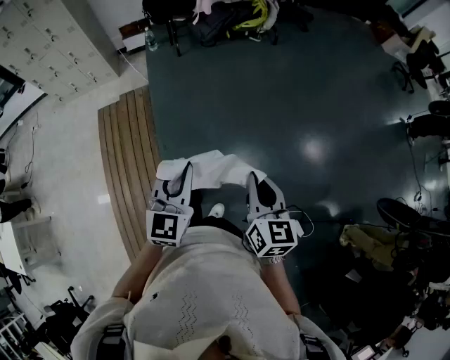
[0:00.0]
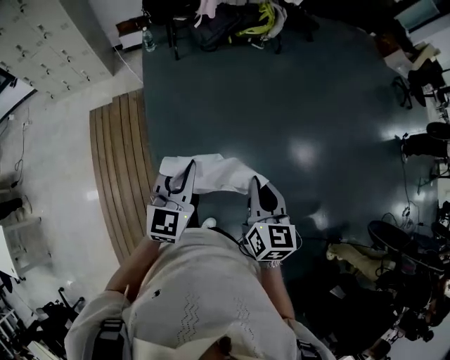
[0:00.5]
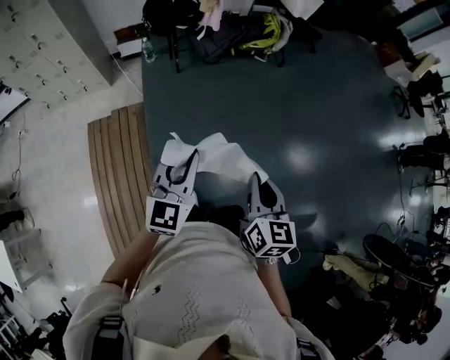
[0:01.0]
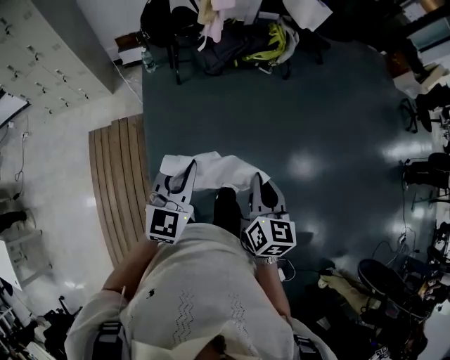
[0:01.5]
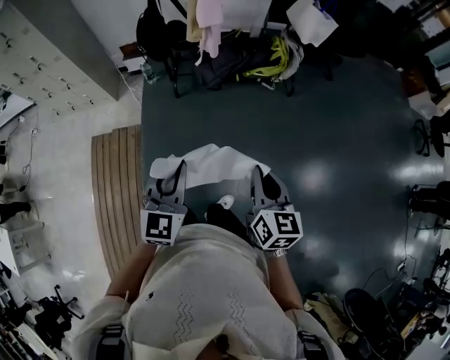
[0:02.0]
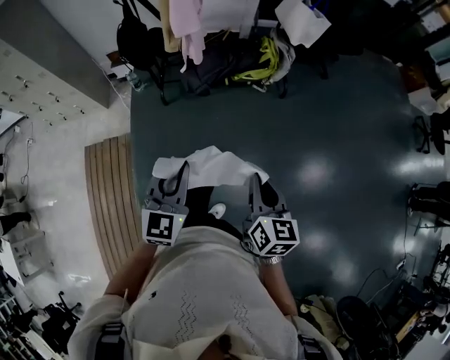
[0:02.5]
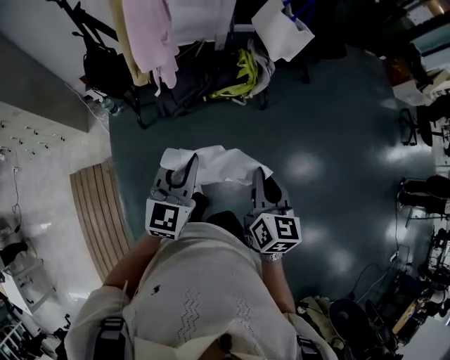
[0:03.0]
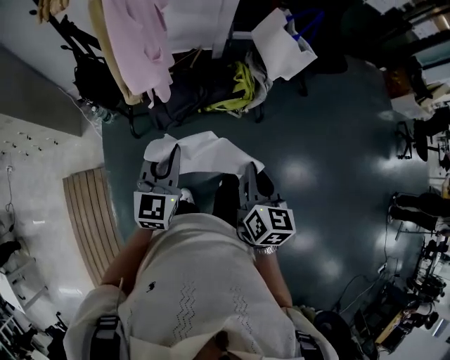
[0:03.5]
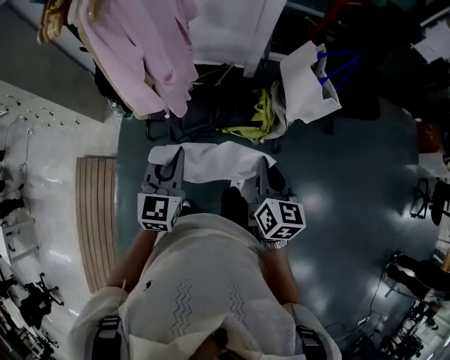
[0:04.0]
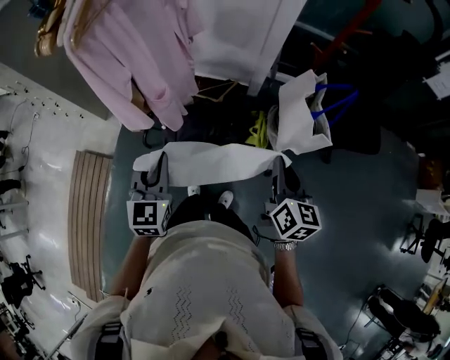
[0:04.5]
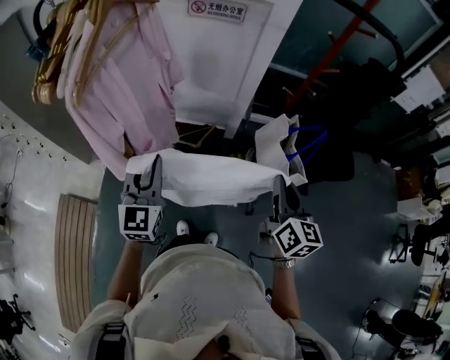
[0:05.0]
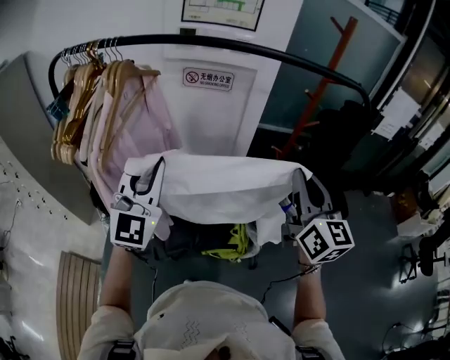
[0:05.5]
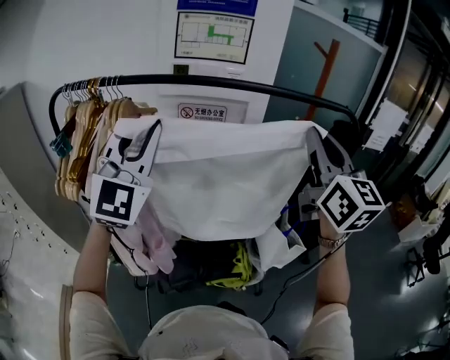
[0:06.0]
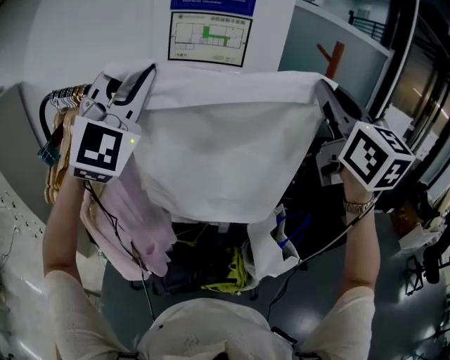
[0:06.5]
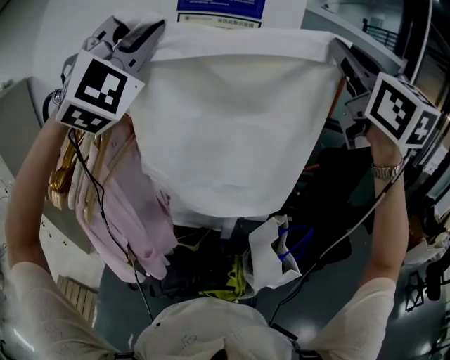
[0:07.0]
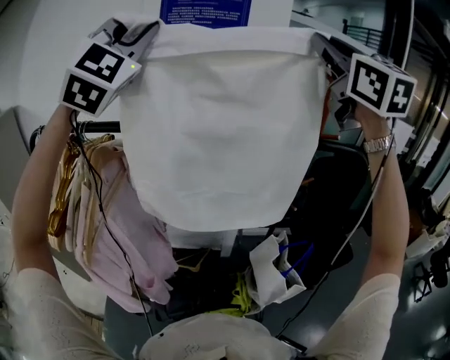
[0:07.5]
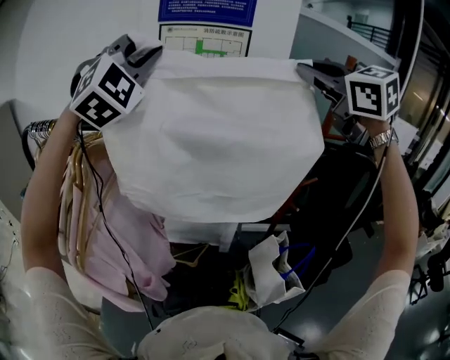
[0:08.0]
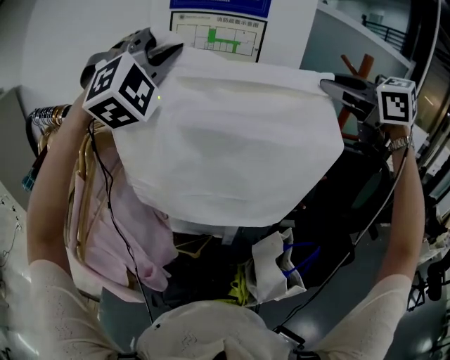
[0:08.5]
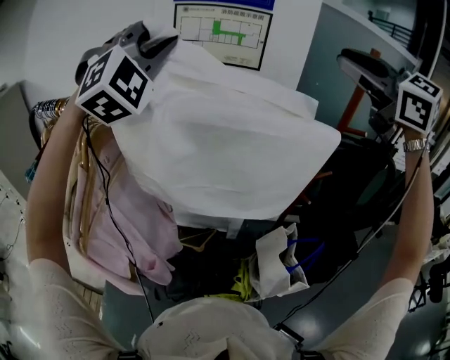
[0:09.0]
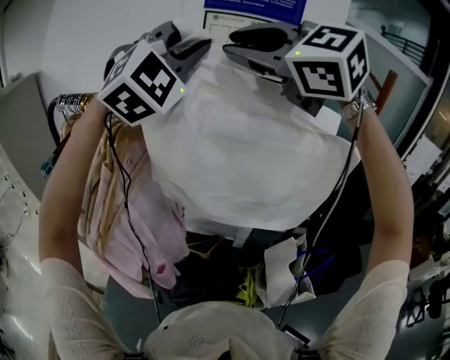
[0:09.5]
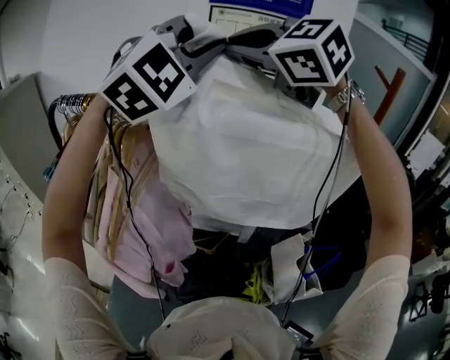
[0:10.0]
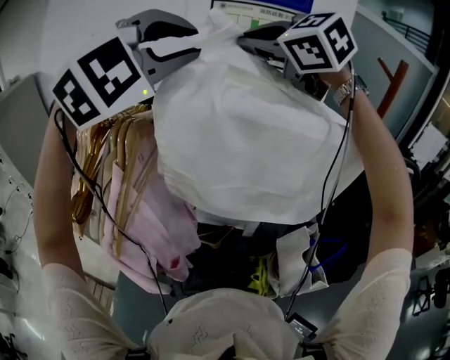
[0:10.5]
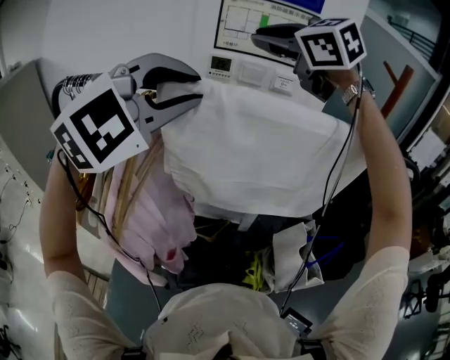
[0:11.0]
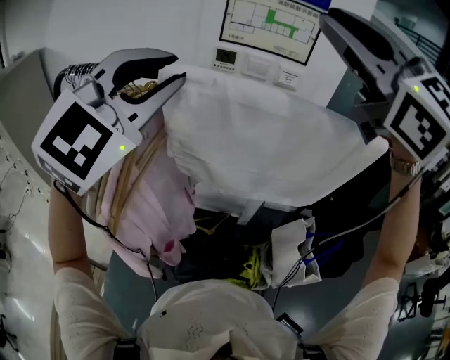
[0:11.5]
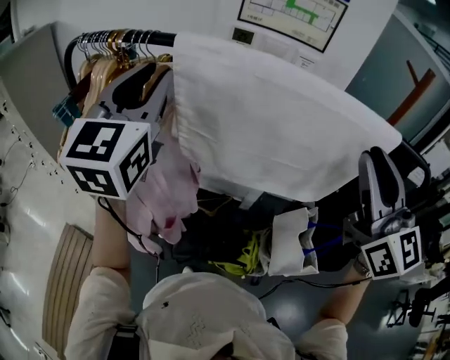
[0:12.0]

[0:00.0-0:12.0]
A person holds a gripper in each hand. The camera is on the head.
0:00.0 to 0:02.0: The two grippers travel together, forward, approximately 70 cm.
0:02.0 to 0:04.0: Both grippers are carried forward, about 60 cm.
0:04.0 to 0:06.0: The grippers both shift upward and forward by about 50 cm. The left gripper angles its fingers upward, by approximately 40 degrees. Meanwhile the right gripper points its fingers roughly 40 degrees further upward.
0:06.0 to 0:08.0: Both grippers travel together forward and upward, about 30 cm. The left gripper rotates roughly 40 degrees, while the right gripper changes its angle by some 40 degrees.
0:08.0 to 0:10.0: The right gripper heads to the left, covering some 25 cm, and changes its angle by approximately 30 degrees.
0:10.0 to 0:12.0: The right gripper goes some 30 cm backward, to the right and downward, and tilts its fingers approximately 30 degrees upward, while the left gripper moves to the left, downward and backward, roughly 20 cm, and rotates around the line of its fingers by roughly 50 degrees, counterclockwise from behind.

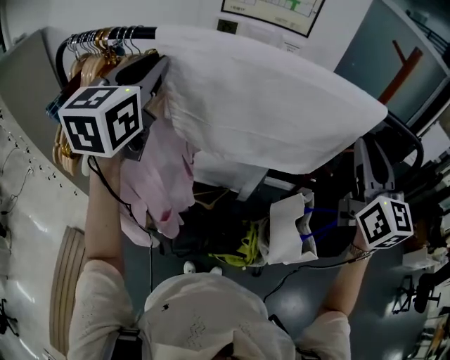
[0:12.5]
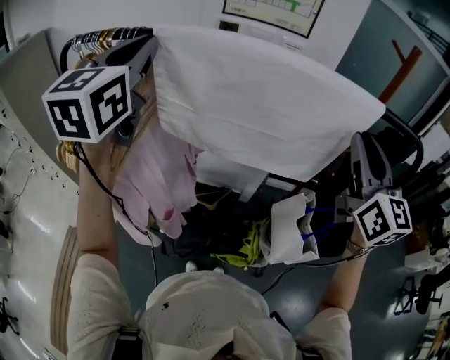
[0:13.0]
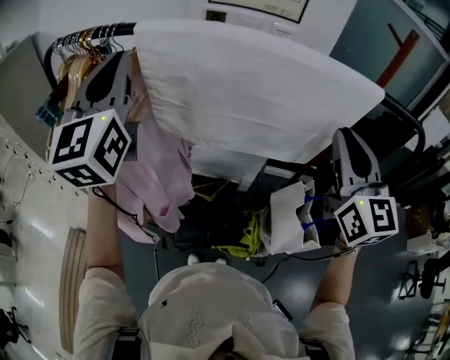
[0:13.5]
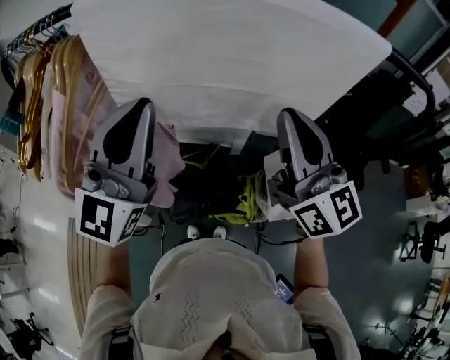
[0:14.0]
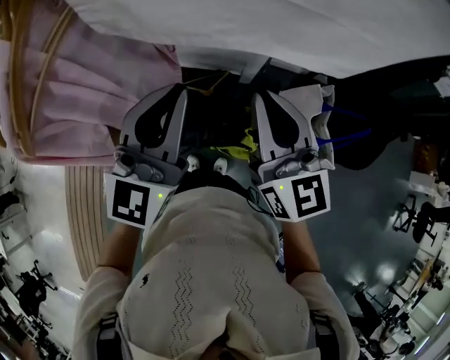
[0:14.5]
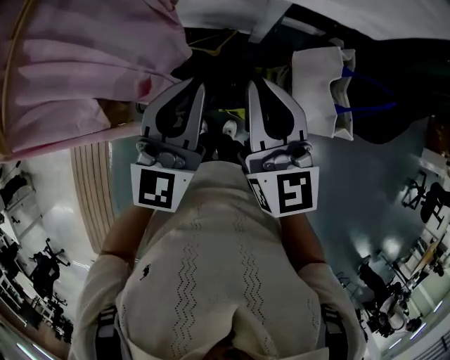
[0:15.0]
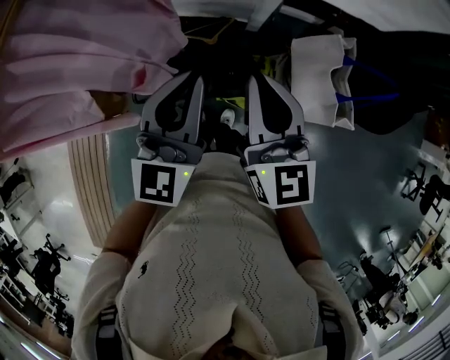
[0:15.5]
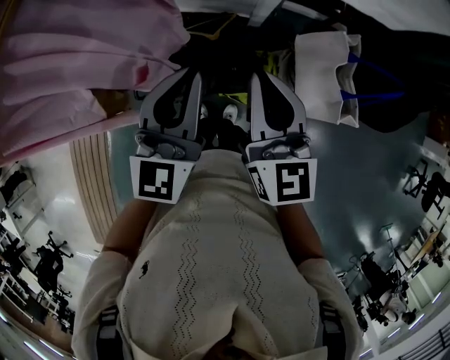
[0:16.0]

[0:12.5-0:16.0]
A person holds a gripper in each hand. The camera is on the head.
0:12.5 to 0:14.5: The left gripper goes approximately 30 cm downward, to the right and backward. The right gripper is displaced downward and to the left by about 30 cm.
0:14.5 to 0:16.0: The grippers both shift downward by some 10 cm.

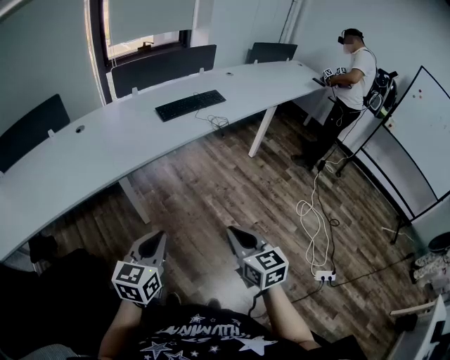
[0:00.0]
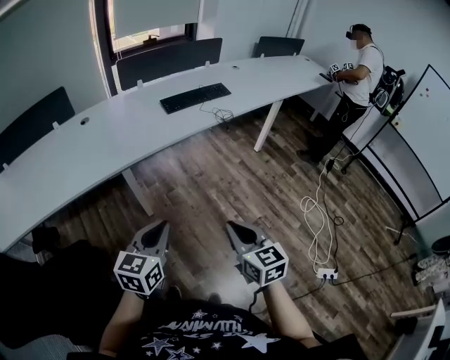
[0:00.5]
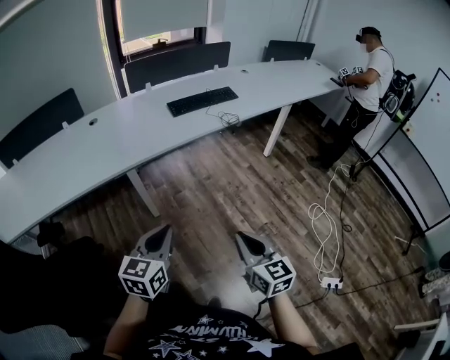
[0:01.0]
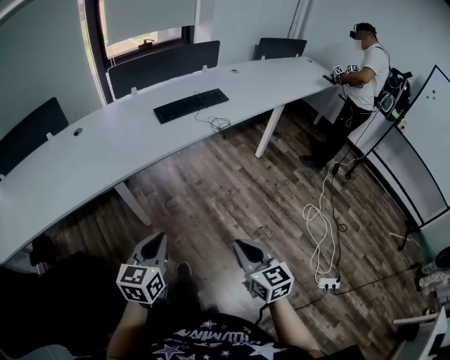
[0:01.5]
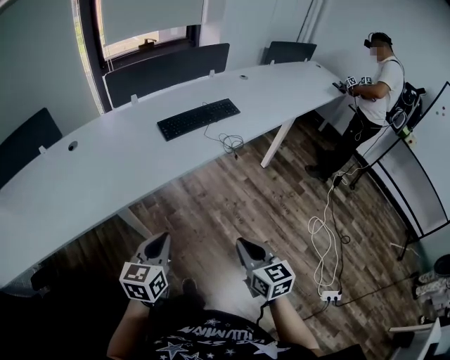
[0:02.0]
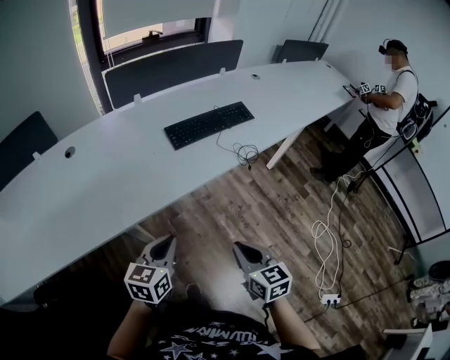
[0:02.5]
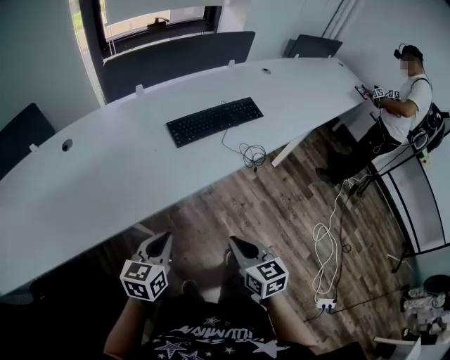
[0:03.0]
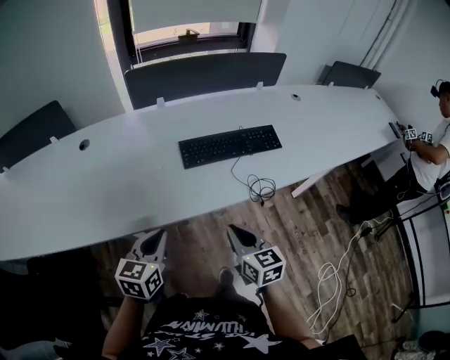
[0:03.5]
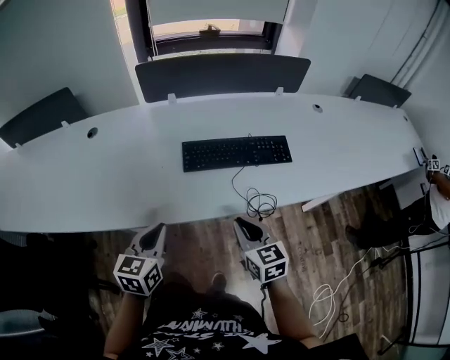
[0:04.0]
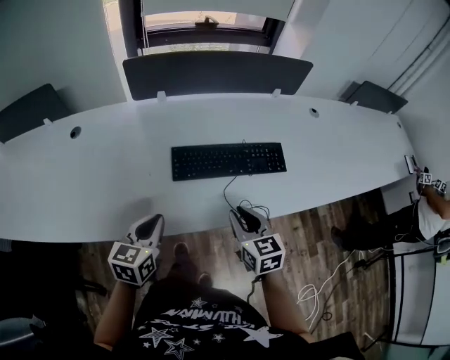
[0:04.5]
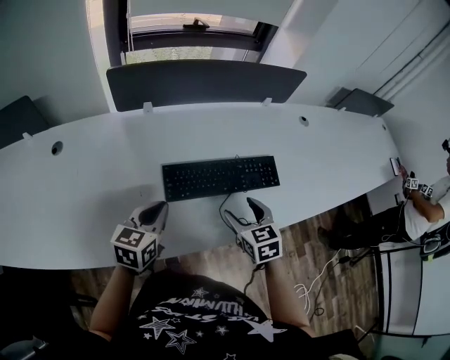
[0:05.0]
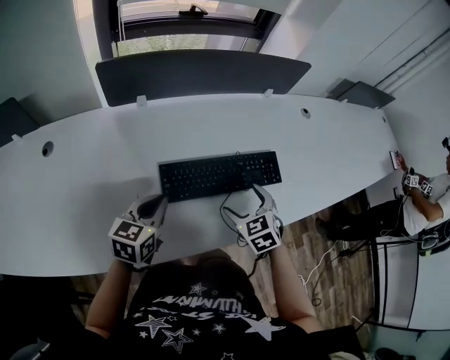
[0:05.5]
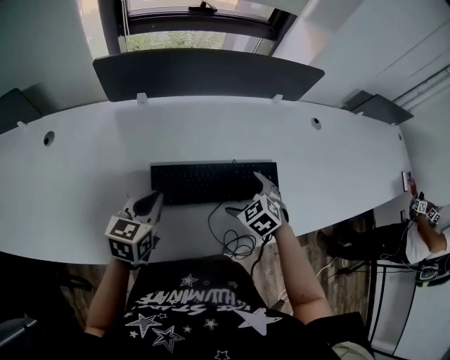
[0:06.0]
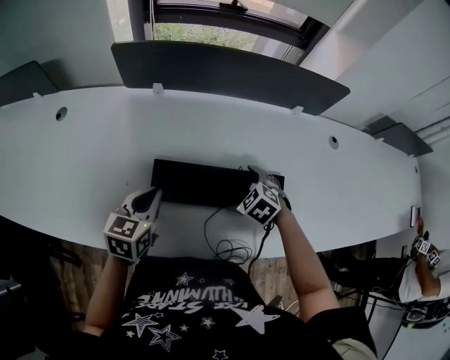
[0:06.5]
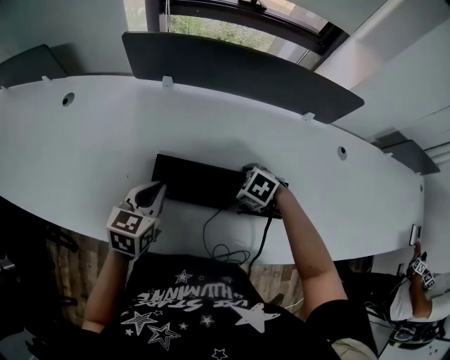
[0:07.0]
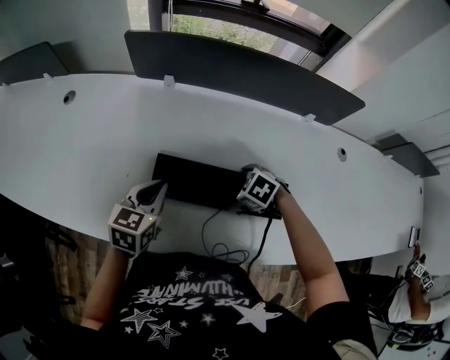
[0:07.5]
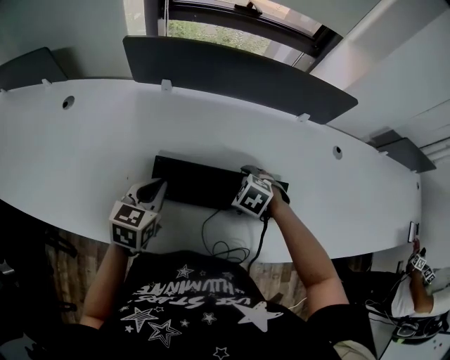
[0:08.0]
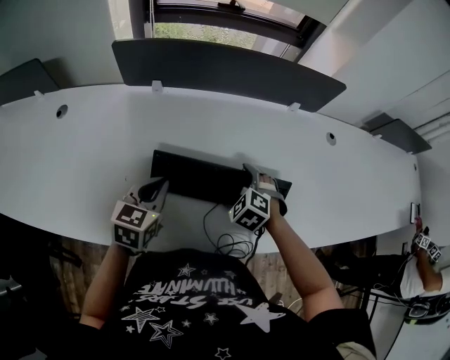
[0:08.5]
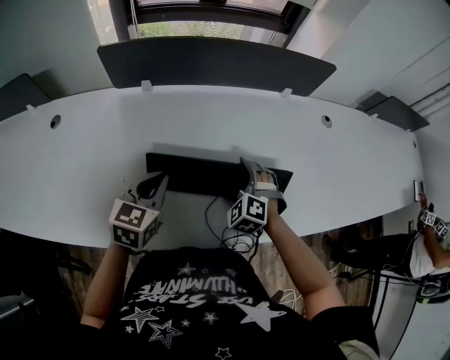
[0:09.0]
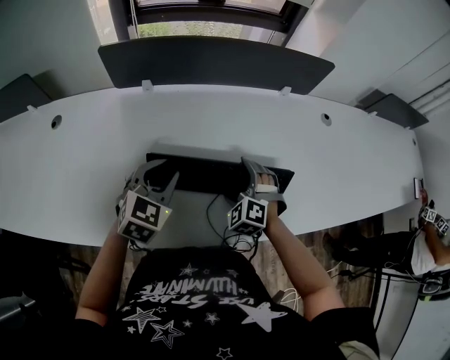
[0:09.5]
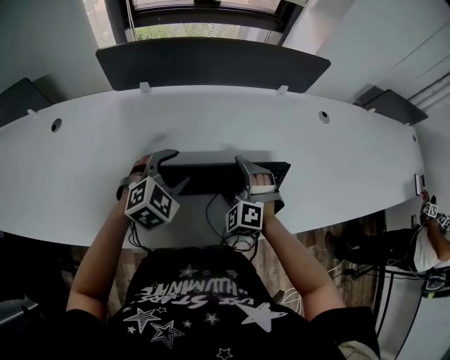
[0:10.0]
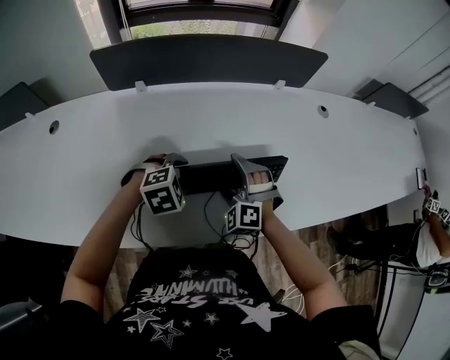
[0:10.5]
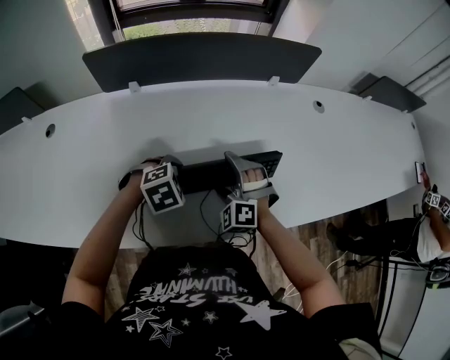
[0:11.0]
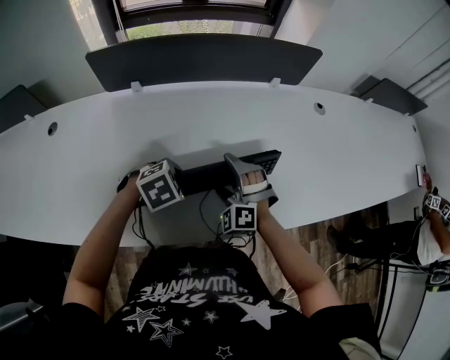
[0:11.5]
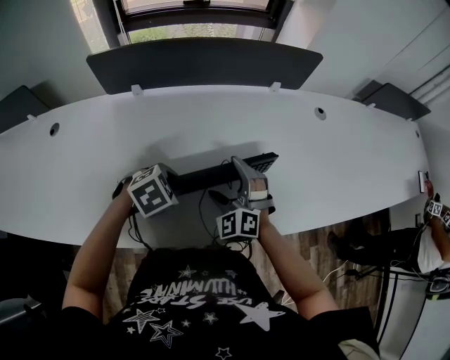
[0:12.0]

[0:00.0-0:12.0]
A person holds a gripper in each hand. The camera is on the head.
0:00.0 to 0:02.0: Both grippers move forward, approximately 20 cm.
0:02.0 to 0:04.0: The right gripper changes place by roughly 35 cm, and rotates roughly 30 degrees; the left gripper changes place by roughly 25 cm, and turns by approximately 30 degrees.
0:04.0 to 0:06.0: The grippers both shift forward by some 25 cm. The right gripper tips its fingers downward by approximately 30 degrees, and opens up.
0:06.0 to 0:08.0: The right gripper shifts by approximately 5 cm, and rotates roughly 30 degrees.
0:08.0 to 0:10.0: The right gripper points its fingers approximately 30 degrees further upward. The left gripper shifts by approximately 10 cm, rotates around the line of its fingers by approximately 50 degrees, clockwise from behind, and opens.
0:10.0 to 0:12.0: The left gripper moves about 5 cm, swivels roughly 30 degrees, and closes up.
